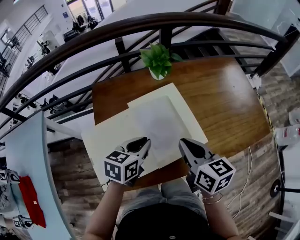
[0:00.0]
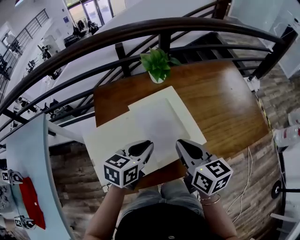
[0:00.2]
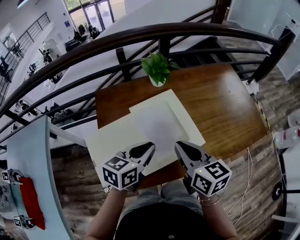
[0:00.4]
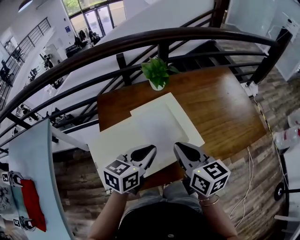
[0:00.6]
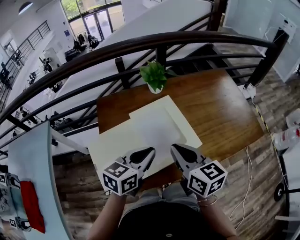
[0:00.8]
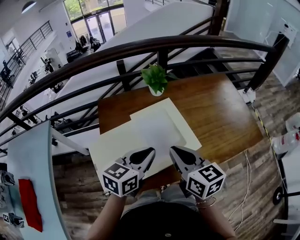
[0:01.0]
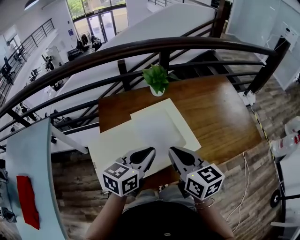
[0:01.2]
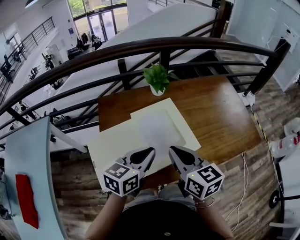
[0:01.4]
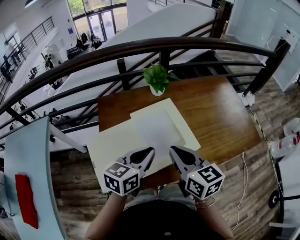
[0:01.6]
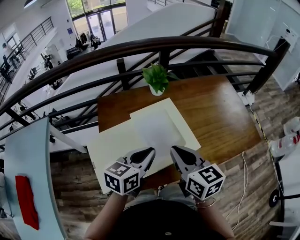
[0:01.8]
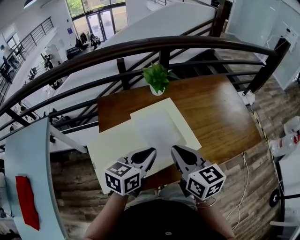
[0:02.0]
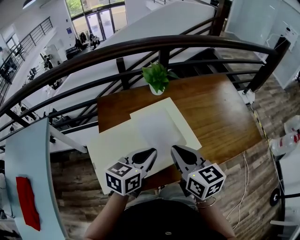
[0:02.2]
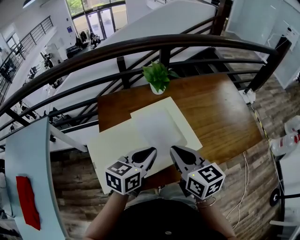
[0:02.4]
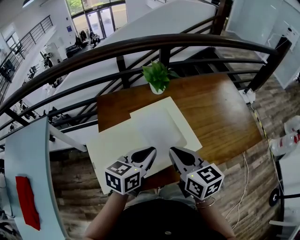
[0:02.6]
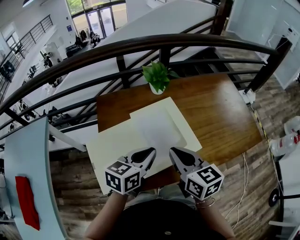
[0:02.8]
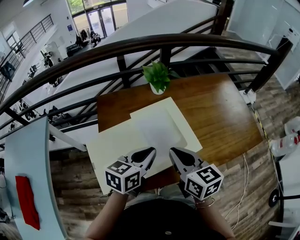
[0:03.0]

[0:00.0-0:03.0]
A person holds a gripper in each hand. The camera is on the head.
0.0 to 1.6 s: The left gripper shifts approximately 10 cm upward; the right gripper changes place by approximately 5 cm.
1.6 to 3.0 s: The grippers stay close to where they were, moving slightly.

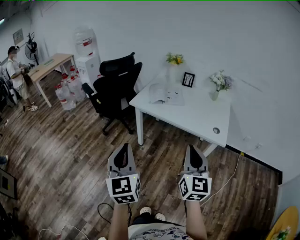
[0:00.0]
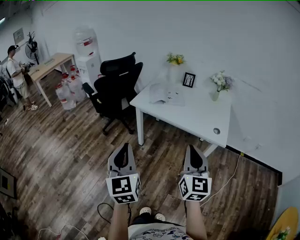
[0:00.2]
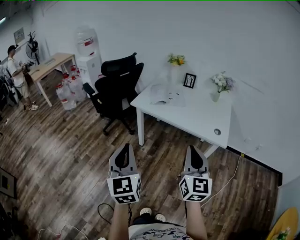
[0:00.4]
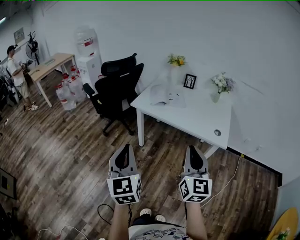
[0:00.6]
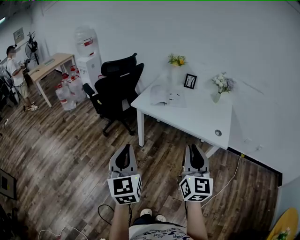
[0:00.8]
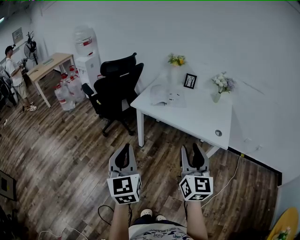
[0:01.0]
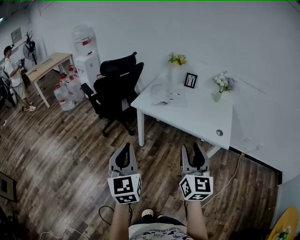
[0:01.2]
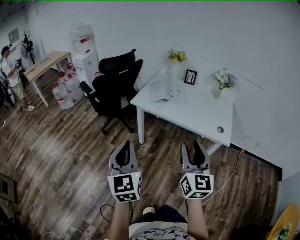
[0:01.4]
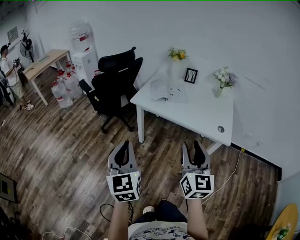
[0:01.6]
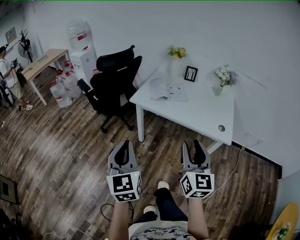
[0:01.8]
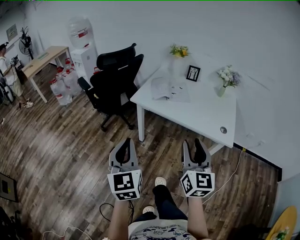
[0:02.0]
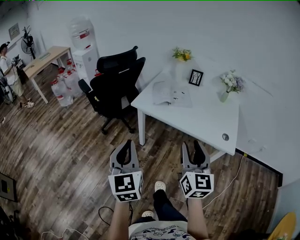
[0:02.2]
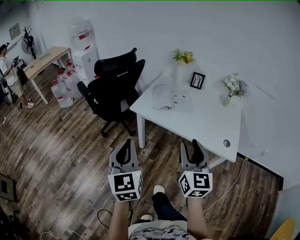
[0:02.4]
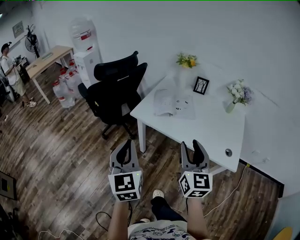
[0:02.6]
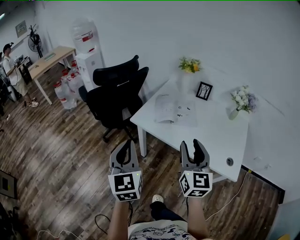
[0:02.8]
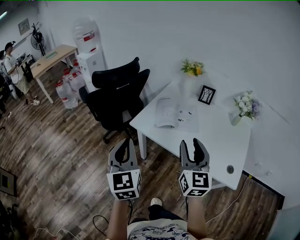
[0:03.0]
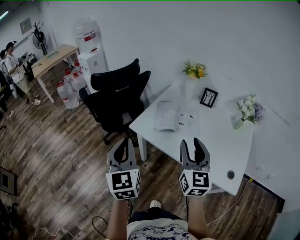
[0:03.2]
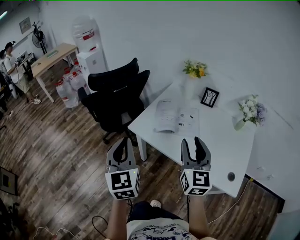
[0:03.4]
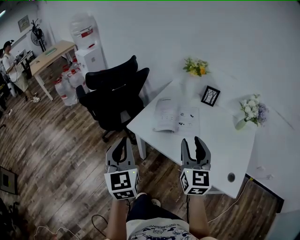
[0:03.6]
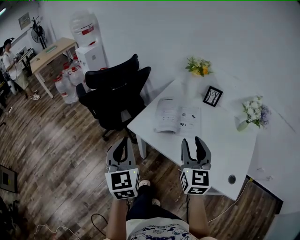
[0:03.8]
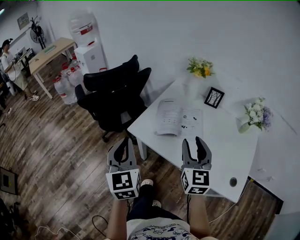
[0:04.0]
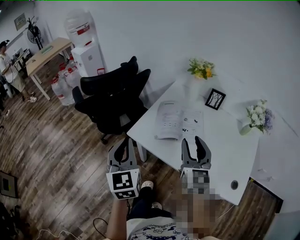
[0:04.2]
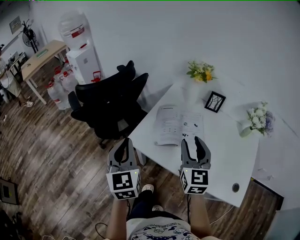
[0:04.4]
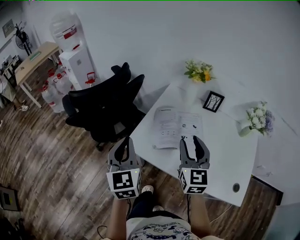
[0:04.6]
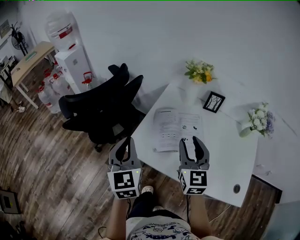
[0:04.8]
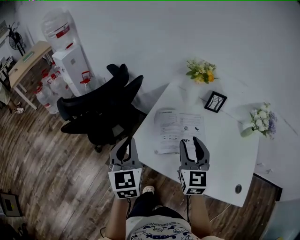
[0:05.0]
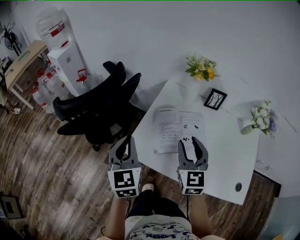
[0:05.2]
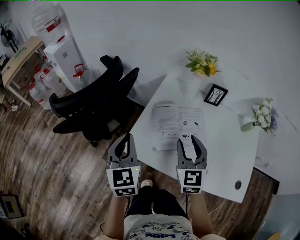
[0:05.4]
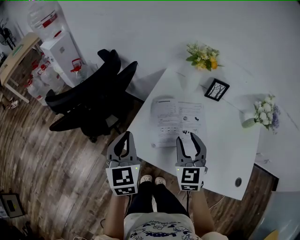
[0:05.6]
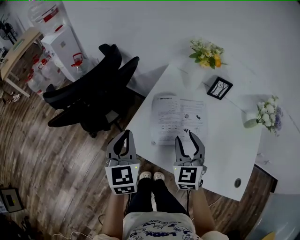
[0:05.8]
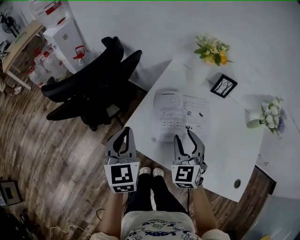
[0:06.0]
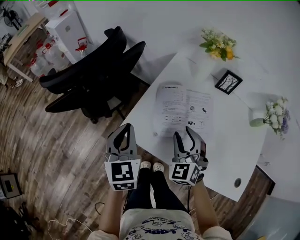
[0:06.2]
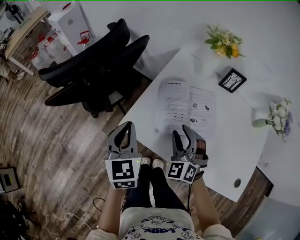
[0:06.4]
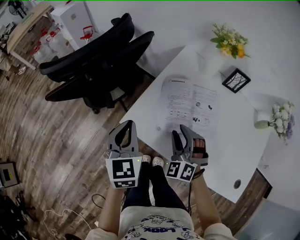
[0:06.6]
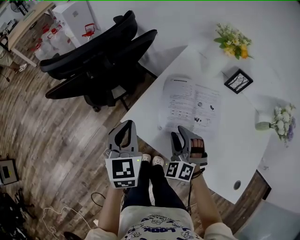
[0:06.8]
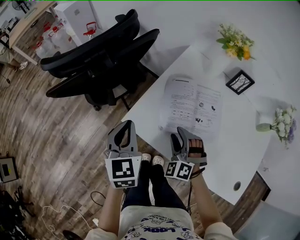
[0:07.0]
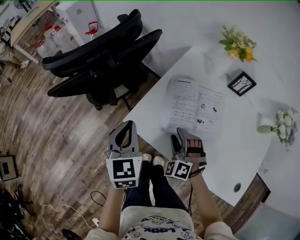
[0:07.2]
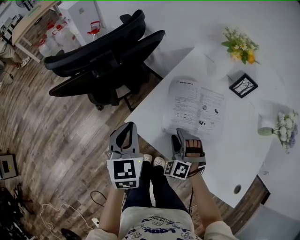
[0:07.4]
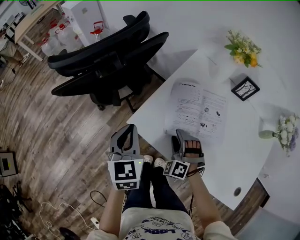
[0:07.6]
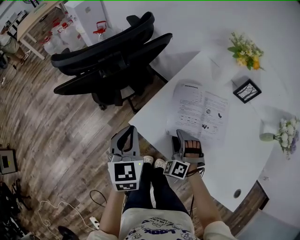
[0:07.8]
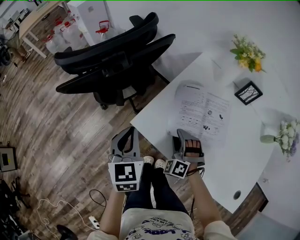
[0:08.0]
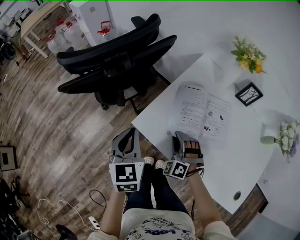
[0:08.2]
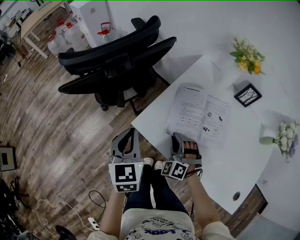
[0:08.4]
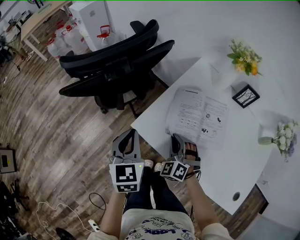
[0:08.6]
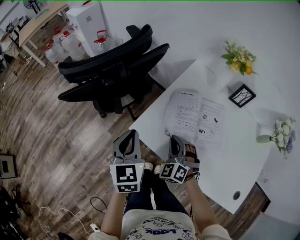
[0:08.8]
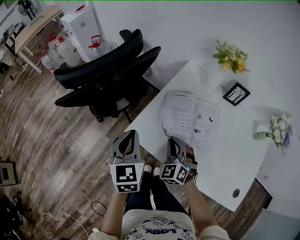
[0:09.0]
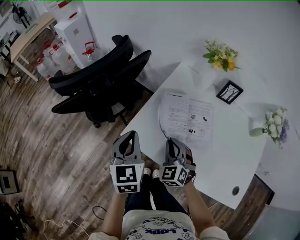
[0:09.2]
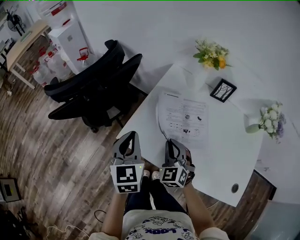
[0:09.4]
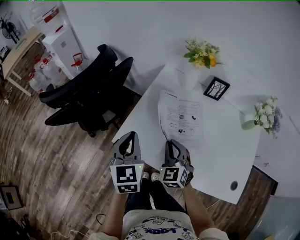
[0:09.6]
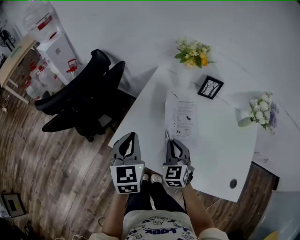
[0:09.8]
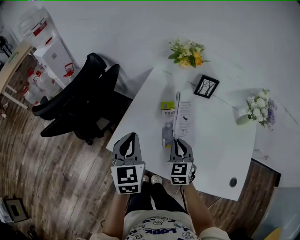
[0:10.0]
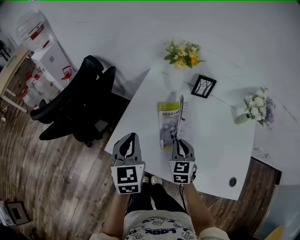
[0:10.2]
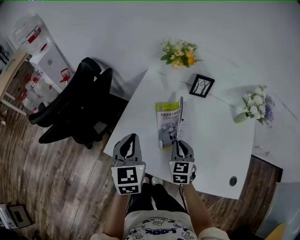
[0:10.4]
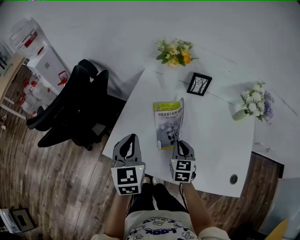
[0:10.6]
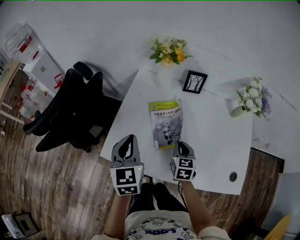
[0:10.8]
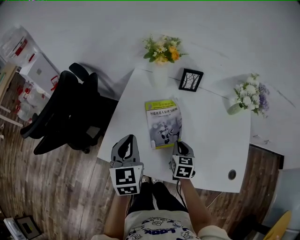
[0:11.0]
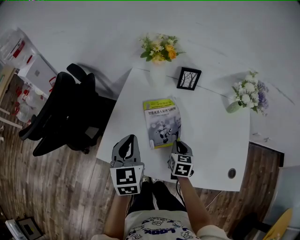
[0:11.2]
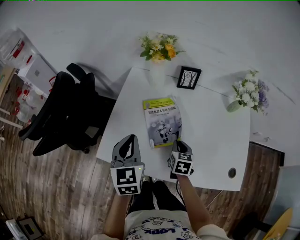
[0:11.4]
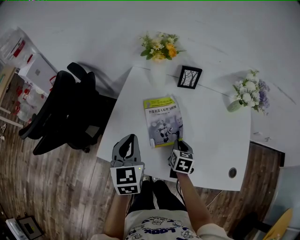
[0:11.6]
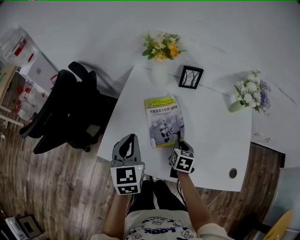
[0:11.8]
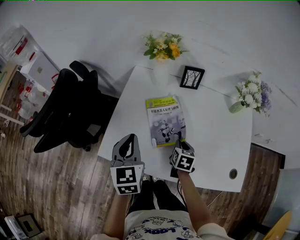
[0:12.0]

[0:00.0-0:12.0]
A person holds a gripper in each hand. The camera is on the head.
0.0 to 1.6 s: The left gripper travels forward by roughly 5 cm; the right gripper ends up roughly 5 cm from where it was, and opens up.
1.6 to 3.0 s: Both grippers move forward, roughly 30 cm.
3.0 to 4.4 s: Both grippers travel together forward, approximately 20 cm.
4.4 to 6.0 s: The right gripper goes some 15 cm downward and forward, and swivels some 30 degrees. Meanwhile the left gripper shifts some 15 cm forward and downward.
6.0 to 7.6 s: The right gripper is displaced downward by approximately 15 cm, and twists about 50 degrees counterclockwise, seen from behind, while the left gripper shifts approximately 5 cm downward.
7.6 to 9.0 s: The right gripper goes some 5 cm upward, changes its angle by roughly 30 degrees, and closes up.
9.0 to 10.4 s: The grippers both shift to the right by about 15 cm. The right gripper changes its angle by some 40 degrees.
10.4 to 12.0 s: The right gripper is displaced downward and to the right by roughly 10 cm, and changes its angle by about 40 degrees.

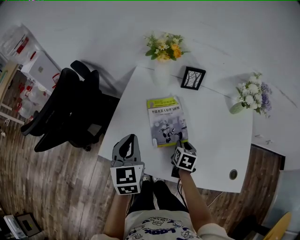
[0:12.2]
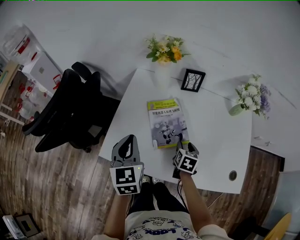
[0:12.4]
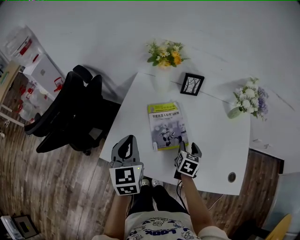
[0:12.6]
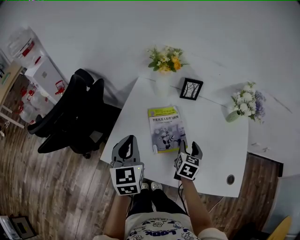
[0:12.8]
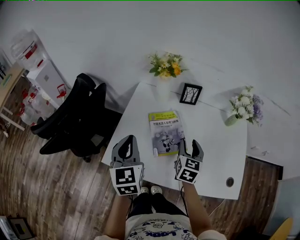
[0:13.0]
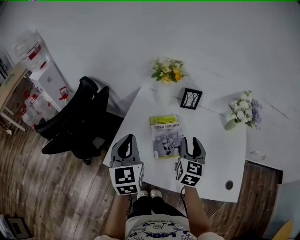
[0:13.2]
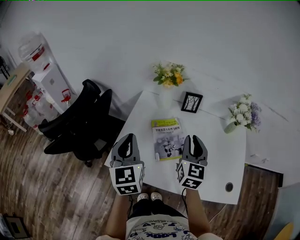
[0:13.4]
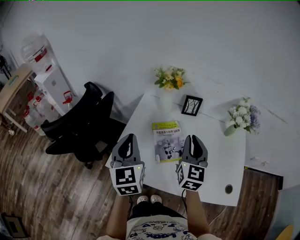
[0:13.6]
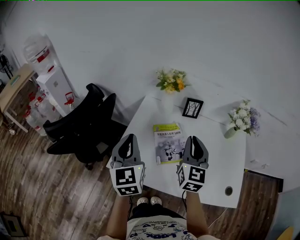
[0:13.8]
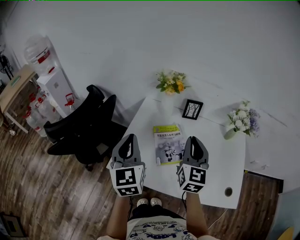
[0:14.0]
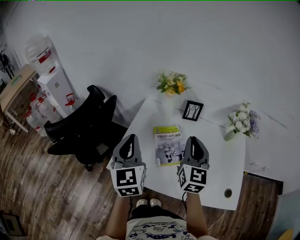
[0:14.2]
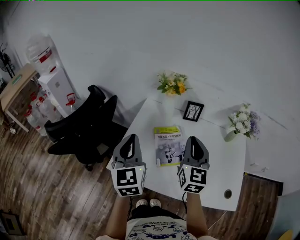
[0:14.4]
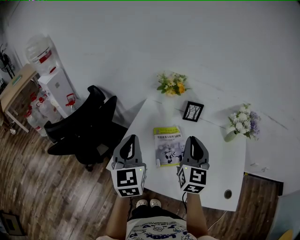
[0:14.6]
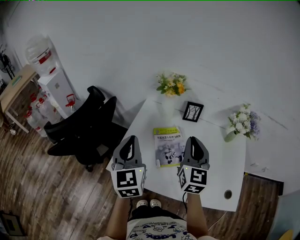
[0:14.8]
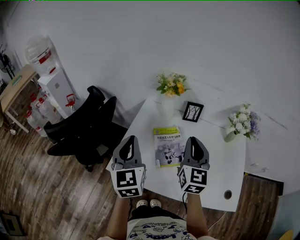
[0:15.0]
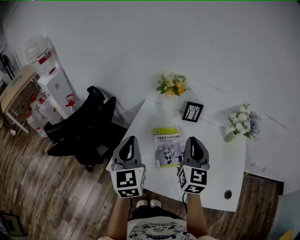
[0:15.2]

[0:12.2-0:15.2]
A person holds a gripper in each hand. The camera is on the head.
12.2 to 13.8 s: The right gripper heads upward, covering approximately 30 cm, angles its fingers upward, by approximately 40 degrees, and opens, then closes again; the left gripper moves upward, approximately 15 cm.
13.8 to 15.2 s: The grippers move only a little.

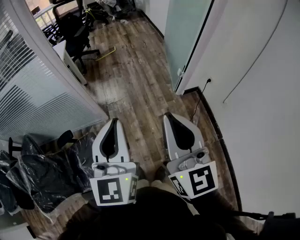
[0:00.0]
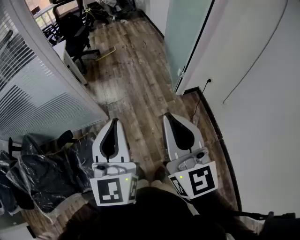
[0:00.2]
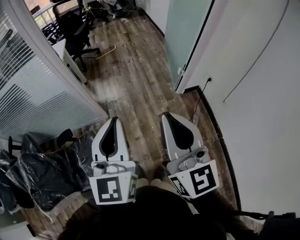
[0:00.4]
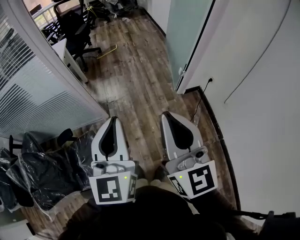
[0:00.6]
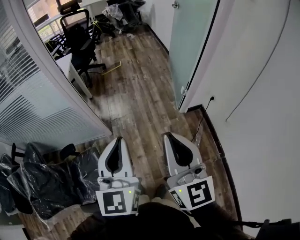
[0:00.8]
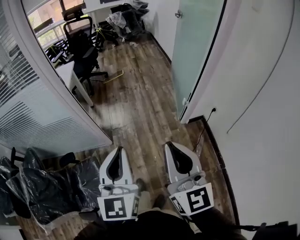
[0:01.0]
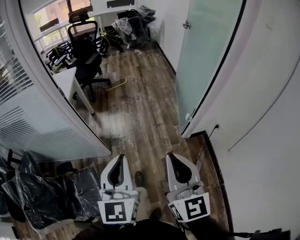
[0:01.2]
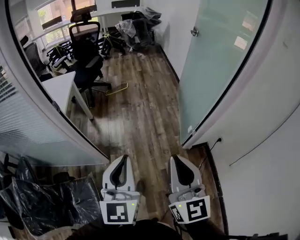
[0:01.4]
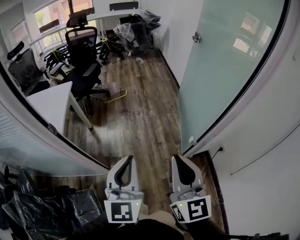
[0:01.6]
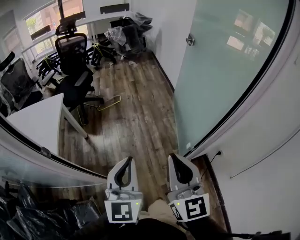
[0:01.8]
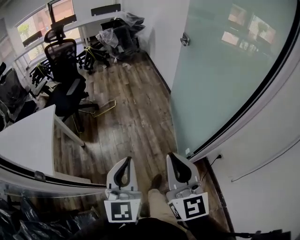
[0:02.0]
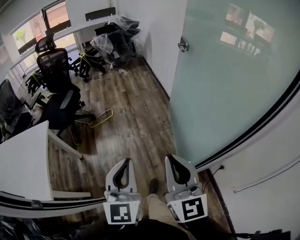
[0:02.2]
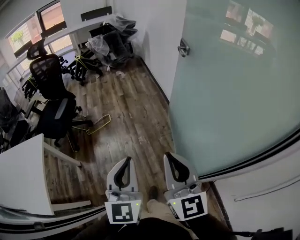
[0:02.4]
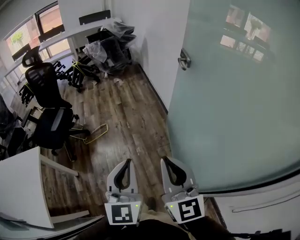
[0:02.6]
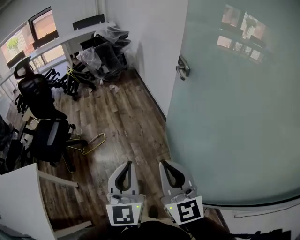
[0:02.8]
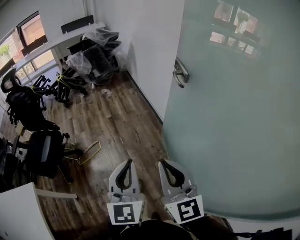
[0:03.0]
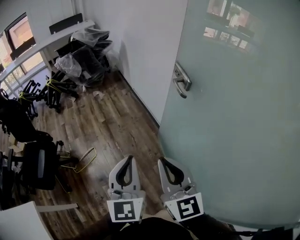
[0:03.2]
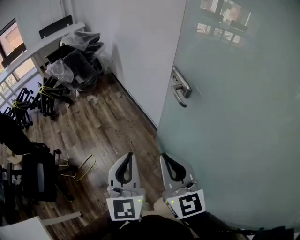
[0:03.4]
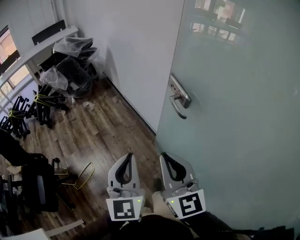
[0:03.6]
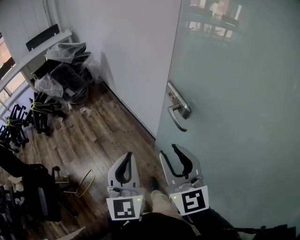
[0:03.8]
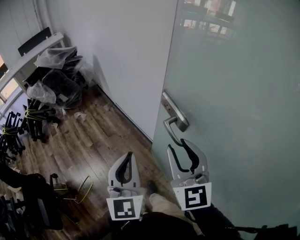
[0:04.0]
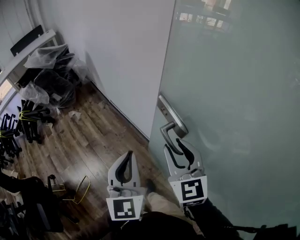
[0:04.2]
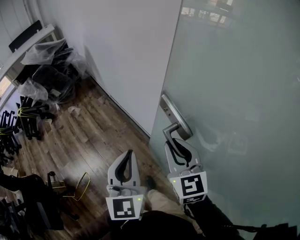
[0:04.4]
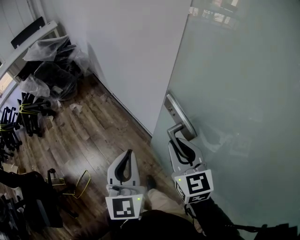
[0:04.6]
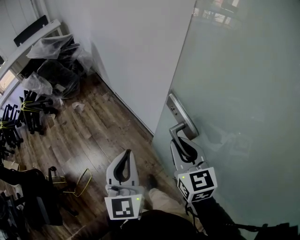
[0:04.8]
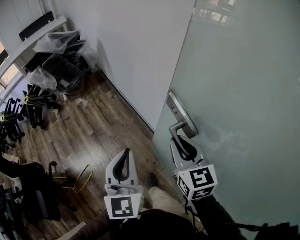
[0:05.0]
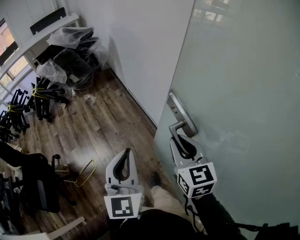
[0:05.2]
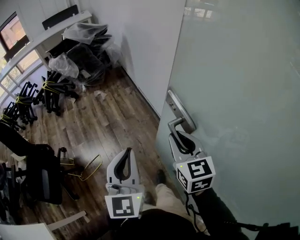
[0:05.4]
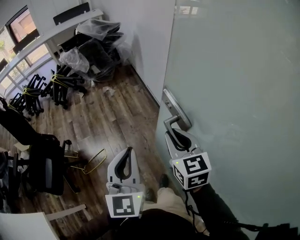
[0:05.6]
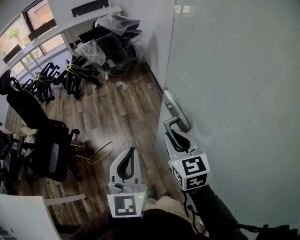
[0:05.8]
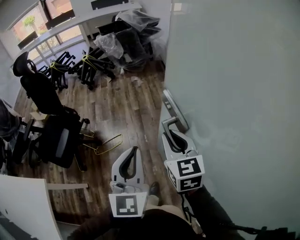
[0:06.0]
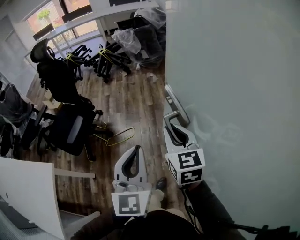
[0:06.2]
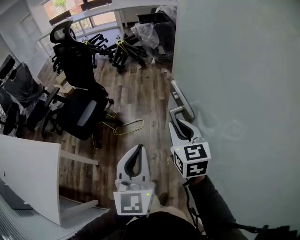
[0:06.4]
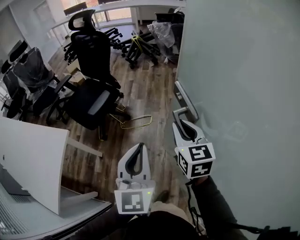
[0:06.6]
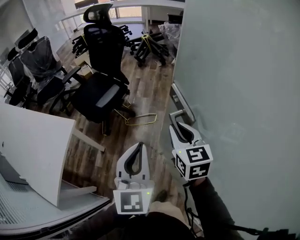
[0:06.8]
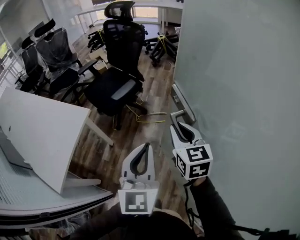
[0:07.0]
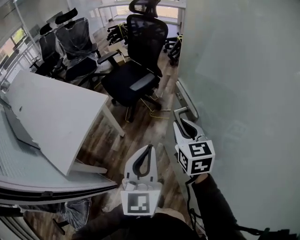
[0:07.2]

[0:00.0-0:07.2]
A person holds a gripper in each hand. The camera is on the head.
0.0 to 1.4 s: Both grippers move forward, approximately 25 cm.
1.4 to 2.8 s: The pair of grippers is taken forward, approximately 70 cm.
2.8 to 4.4 s: The pair of grippers is taken forward, roughly 60 cm. The right gripper changes its angle by about 30 degrees, while the left gripper swivels about 20 degrees.
4.4 to 5.8 s: The left gripper shifts by about 30 cm, and rotates about 20 degrees. Meanwhile the right gripper changes place by roughly 25 cm, and rotates approximately 30 degrees.
5.8 to 7.2 s: Both grippers are carried roughly 50 cm. The left gripper rotates about 40 degrees; the right gripper rotates roughly 40 degrees.
